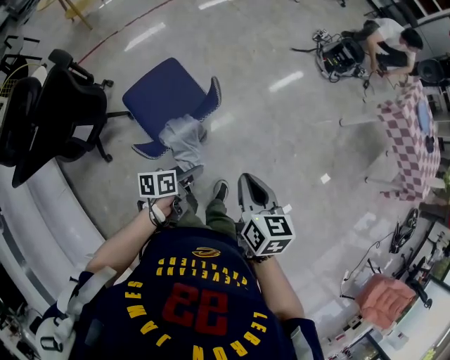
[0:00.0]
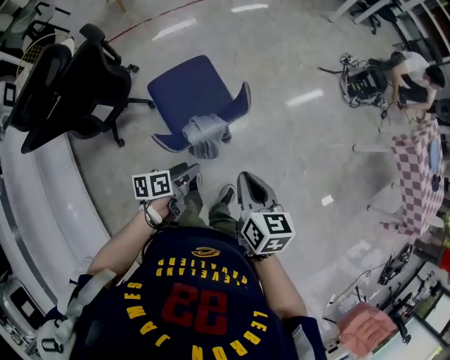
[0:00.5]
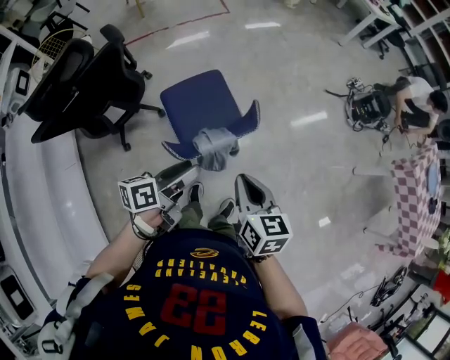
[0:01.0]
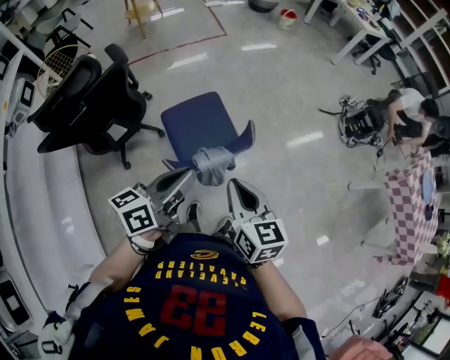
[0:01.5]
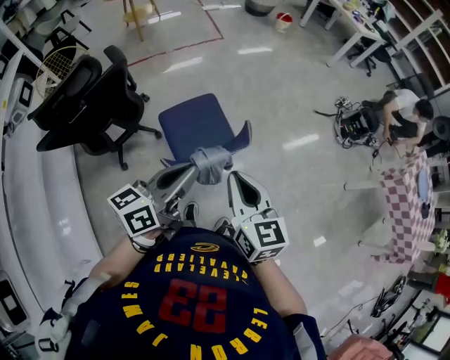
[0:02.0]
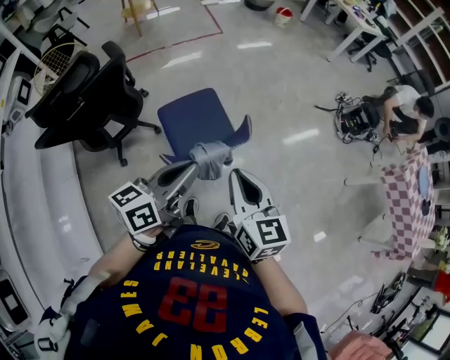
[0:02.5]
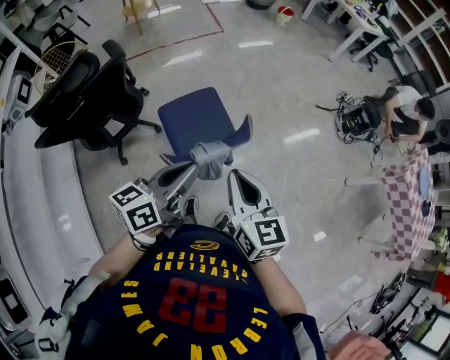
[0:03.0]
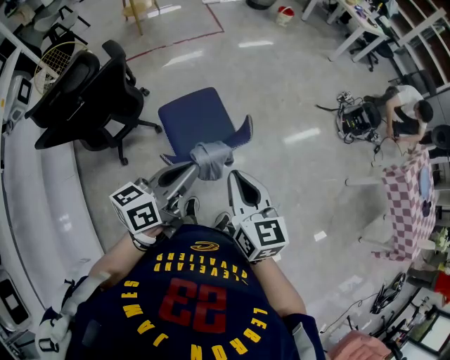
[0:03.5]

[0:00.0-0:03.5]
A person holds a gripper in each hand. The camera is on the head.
0:00.0 to 0:02.0: The right gripper travels to the left and upward by approximately 20 cm, and changes its angle by about 30 degrees. Meanwhile the left gripper shifts some 30 cm upward, points its fingers about 30 degrees further upward, and closes.
0:02.0 to 0:03.5: The grippers make only small movements.

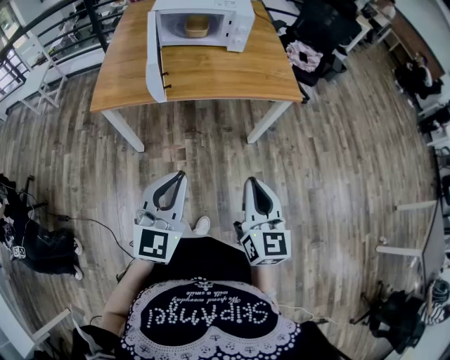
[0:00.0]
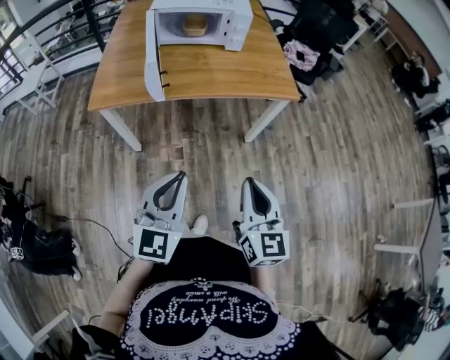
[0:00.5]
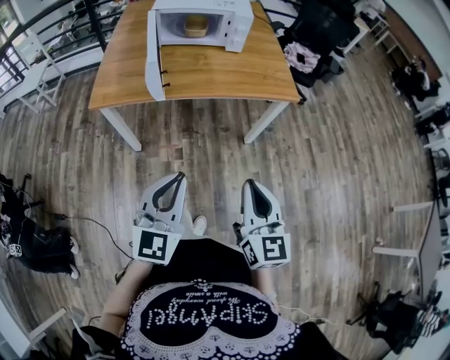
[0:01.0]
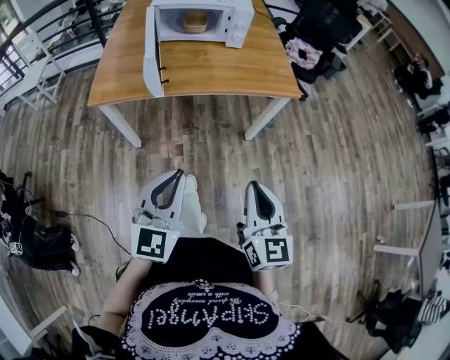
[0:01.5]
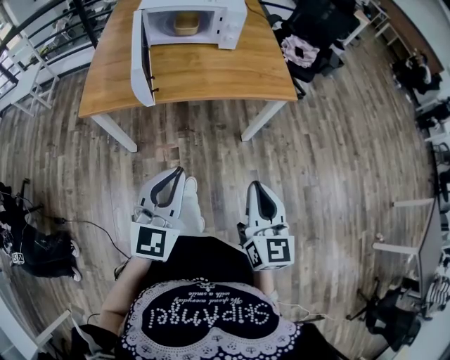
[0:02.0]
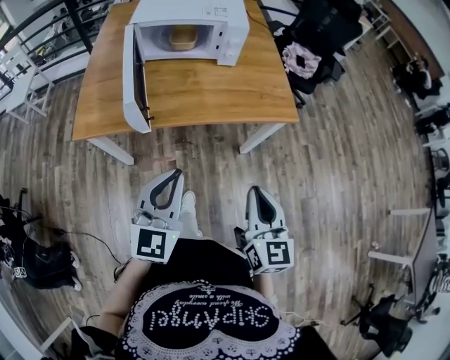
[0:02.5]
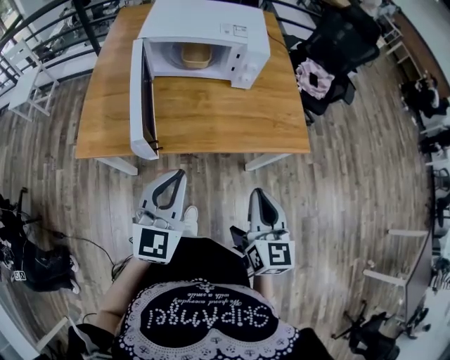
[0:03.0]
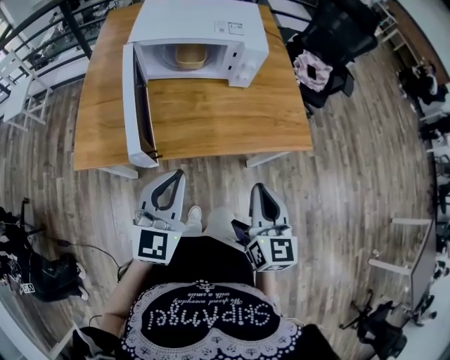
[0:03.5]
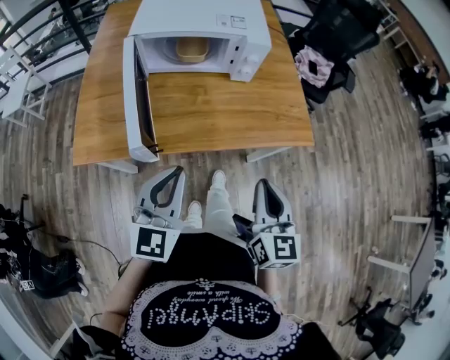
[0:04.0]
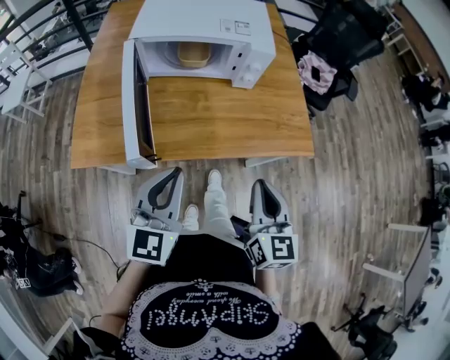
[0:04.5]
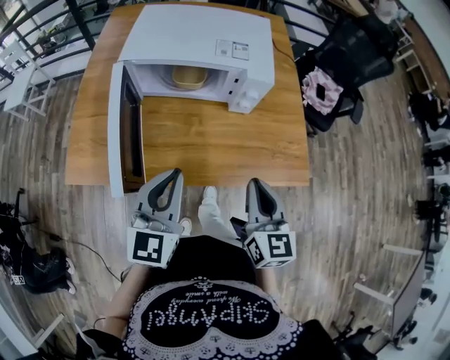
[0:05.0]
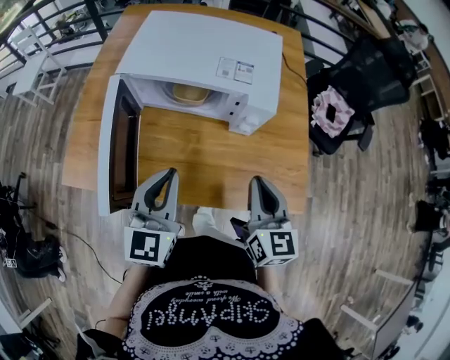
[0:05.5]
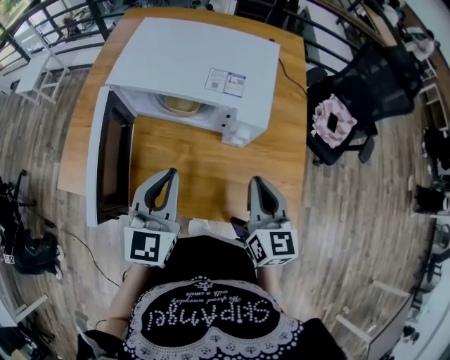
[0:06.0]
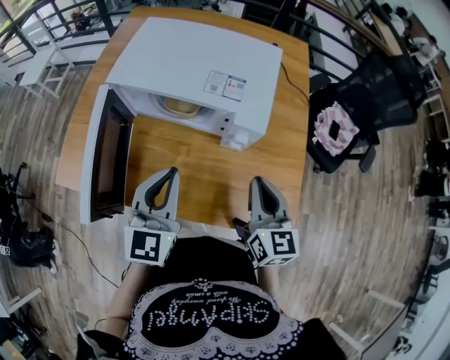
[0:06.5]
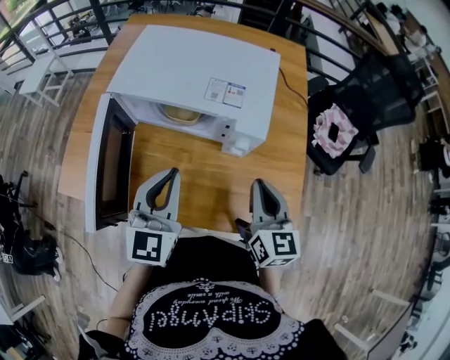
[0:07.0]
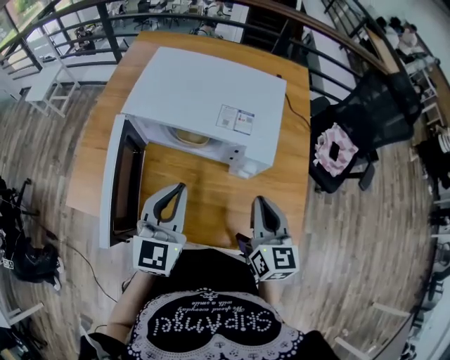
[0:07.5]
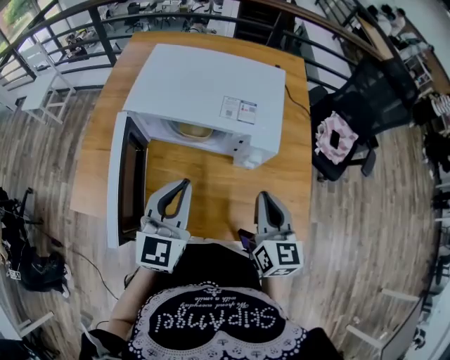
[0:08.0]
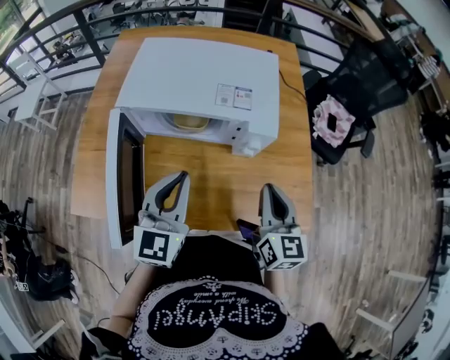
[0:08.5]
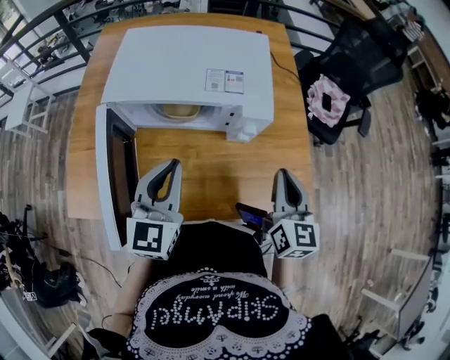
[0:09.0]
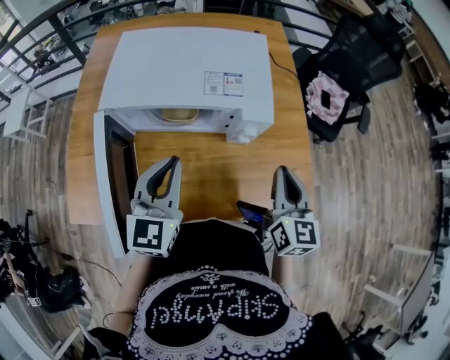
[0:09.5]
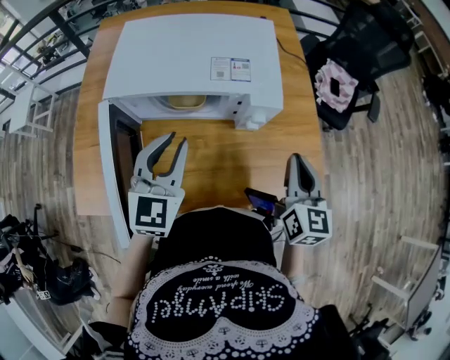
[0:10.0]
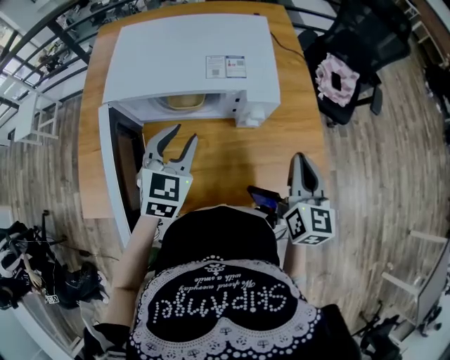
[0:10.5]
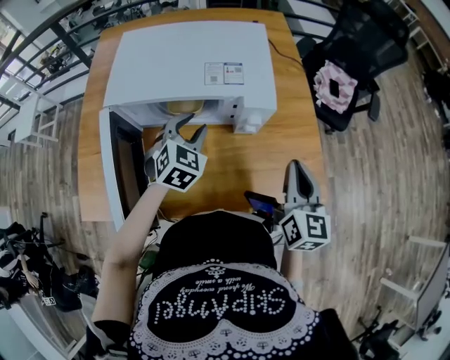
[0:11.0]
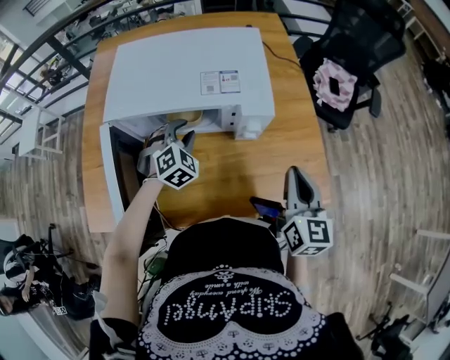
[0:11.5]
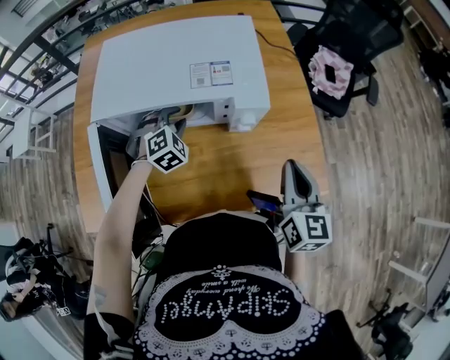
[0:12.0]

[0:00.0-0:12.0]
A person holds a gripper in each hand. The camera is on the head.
0:00.0 to 0:02.0: The left gripper moves approximately 5 cm.
0:02.0 to 0:04.0: Both grippers move forward, roughly 25 cm.
0:04.0 to 0:06.0: Both grippers move forward, about 25 cm.
0:06.0 to 0:08.0: The grippers stay close to where they were, moving slightly.
0:08.0 to 0:10.0: The right gripper goes some 5 cm to the right. The left gripper shifts by approximately 5 cm.
0:10.0 to 0:12.0: The left gripper moves downward and forward, roughly 20 cm, and points its fingers about 40 degrees further downward.

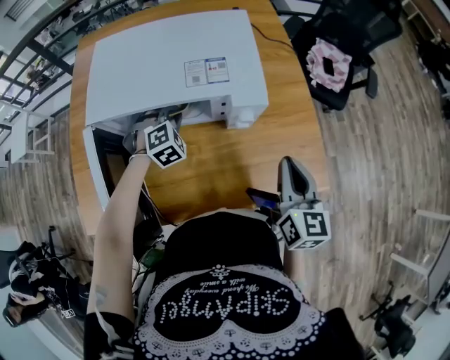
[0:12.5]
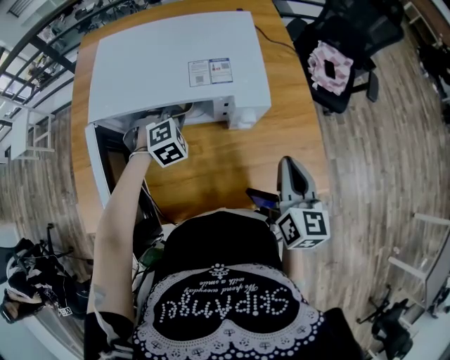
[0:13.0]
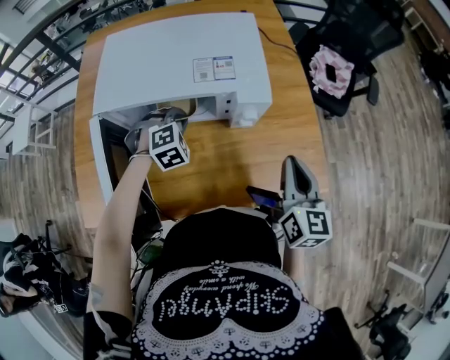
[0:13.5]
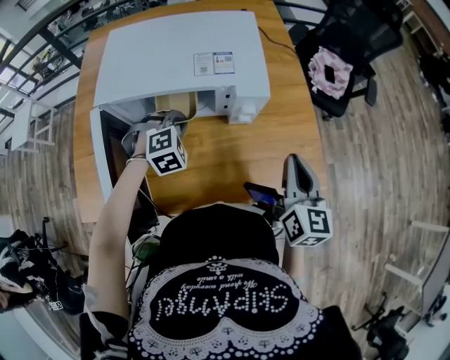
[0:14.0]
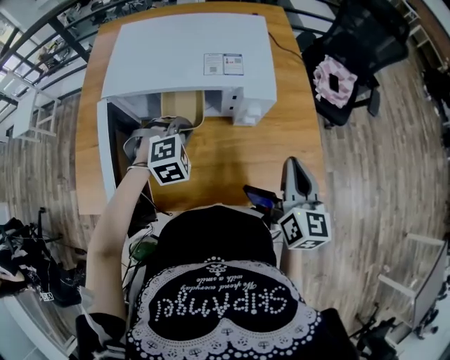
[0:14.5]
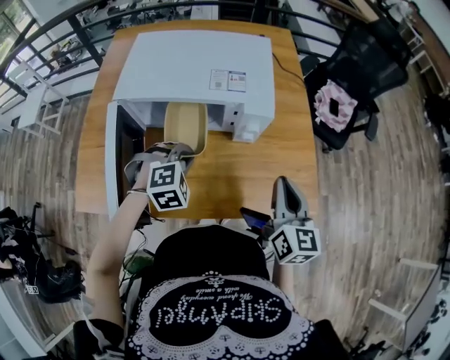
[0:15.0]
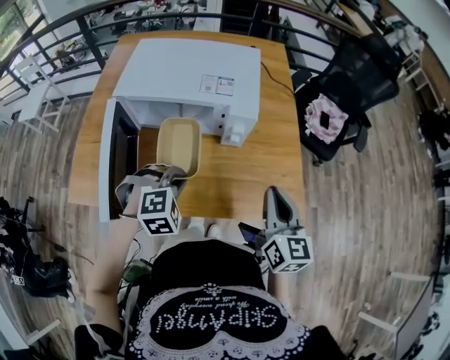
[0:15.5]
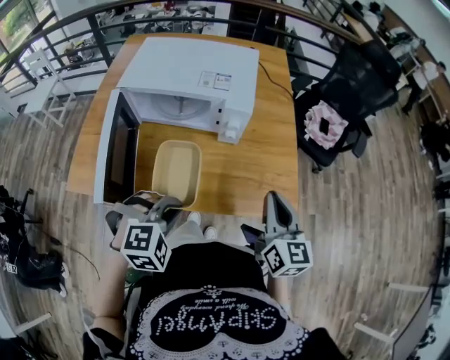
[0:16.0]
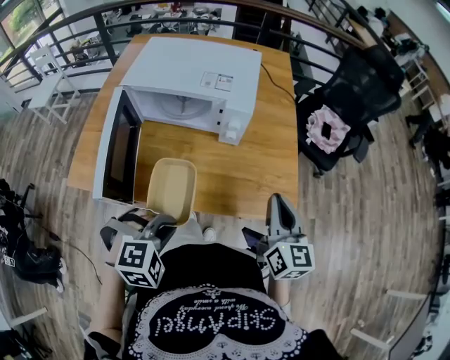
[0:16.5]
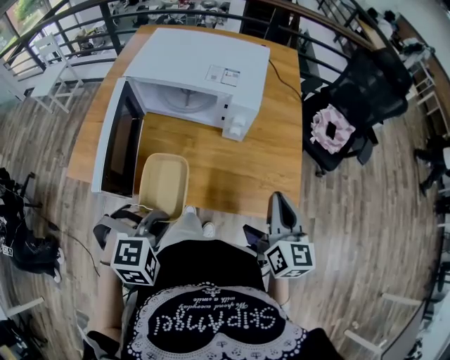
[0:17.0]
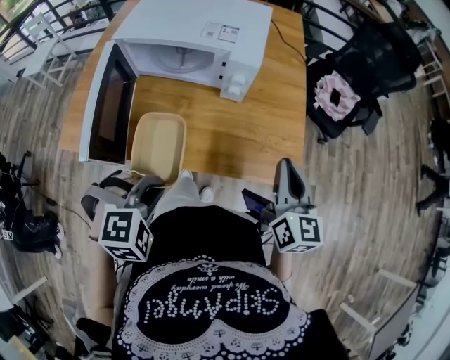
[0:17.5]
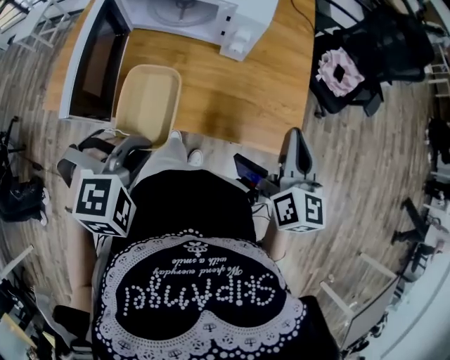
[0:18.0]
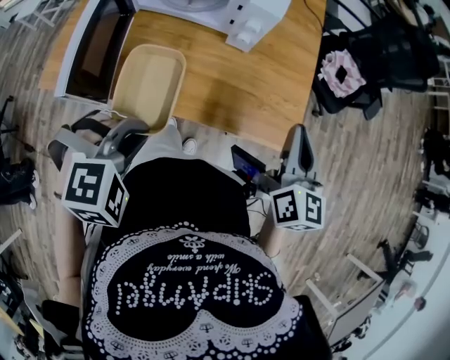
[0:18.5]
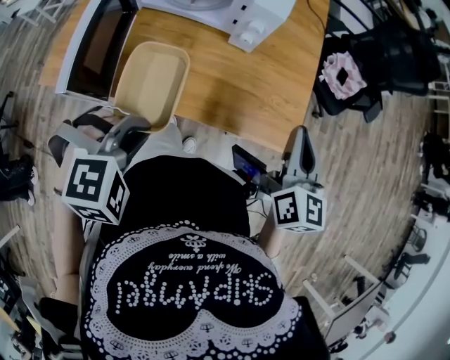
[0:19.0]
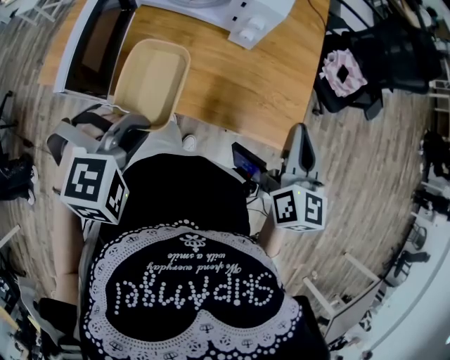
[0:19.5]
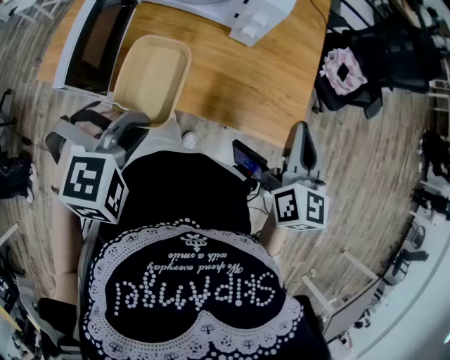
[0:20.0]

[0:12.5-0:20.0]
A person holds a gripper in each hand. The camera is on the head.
0:12.5 to 0:14.5: The left gripper goes some 10 cm backward.
0:14.5 to 0:16.5: The left gripper shifts approximately 30 cm backward. Meanwhile the right gripper moves backward and to the right, some 10 cm.
0:16.5 to 0:20.0: There are only small adjustments of the grippers.

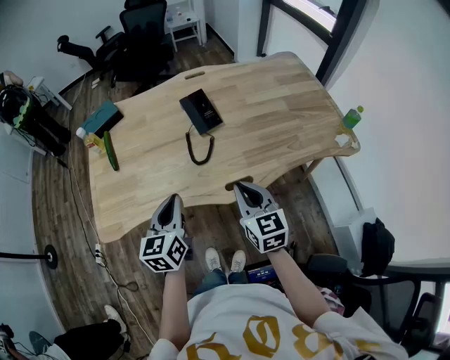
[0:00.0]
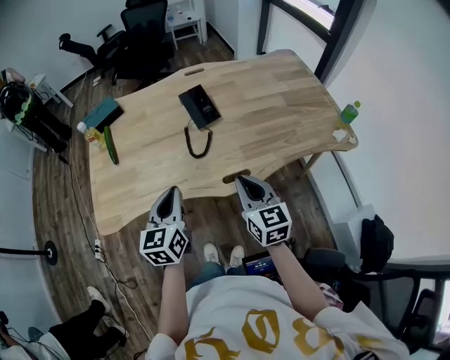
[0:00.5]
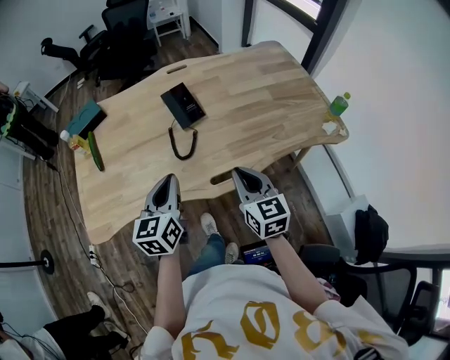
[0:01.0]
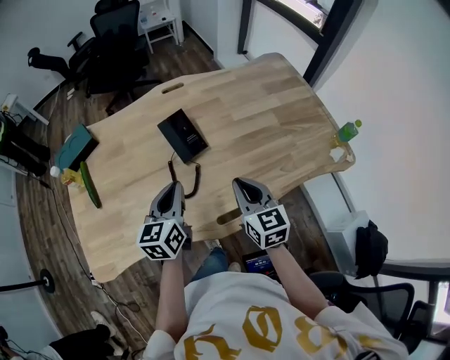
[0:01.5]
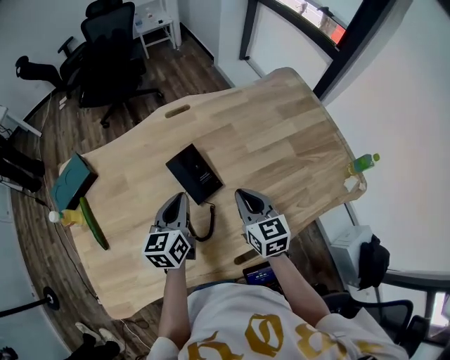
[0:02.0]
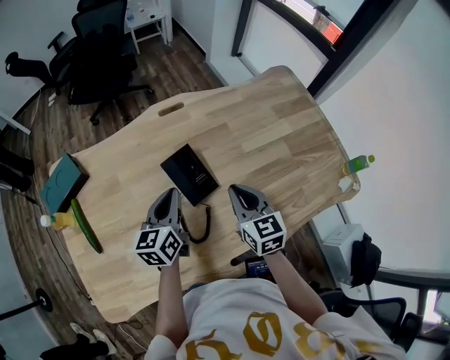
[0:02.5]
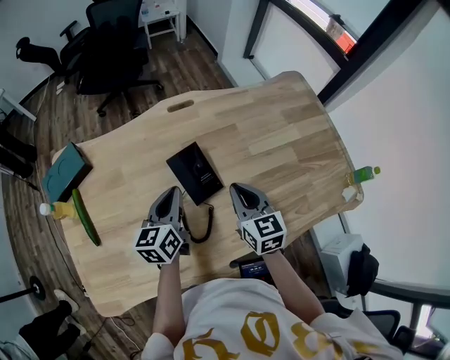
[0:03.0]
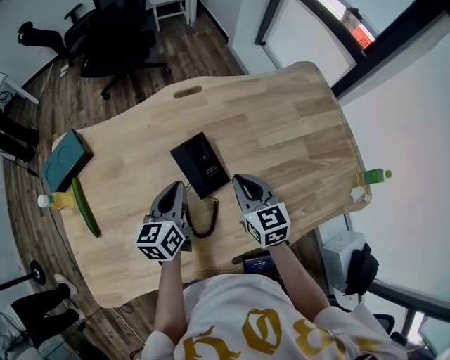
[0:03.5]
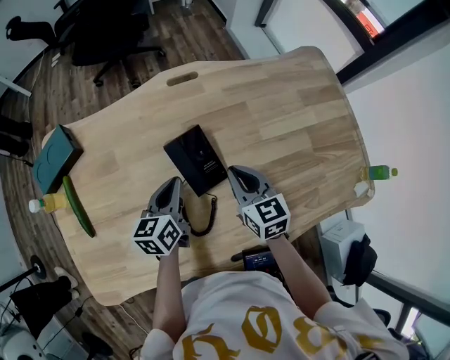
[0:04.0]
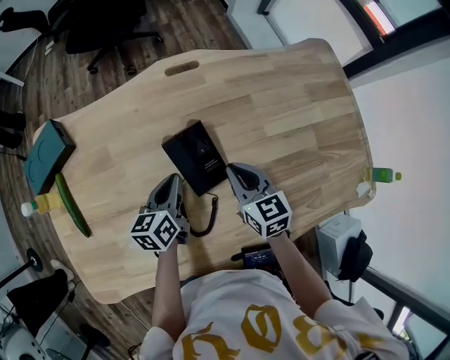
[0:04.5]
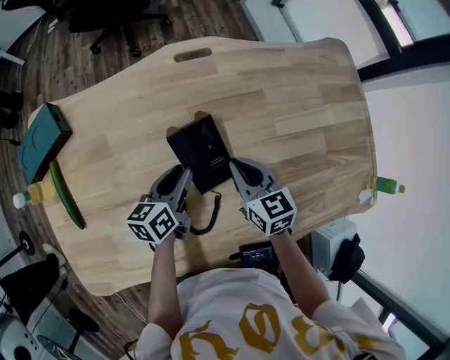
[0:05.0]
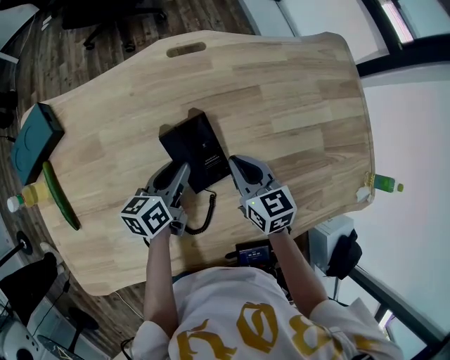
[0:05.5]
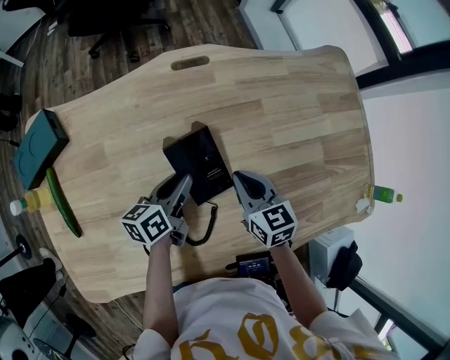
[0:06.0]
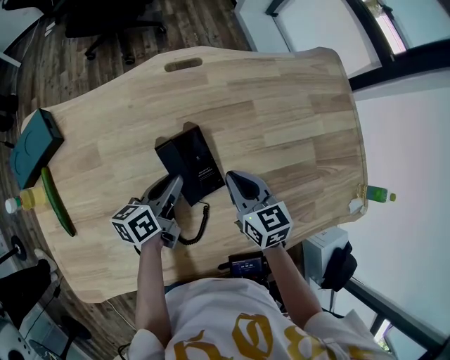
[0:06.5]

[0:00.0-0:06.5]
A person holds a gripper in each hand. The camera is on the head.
0:00.0 to 0:02.0: The grippers both shift forward by approximately 30 cm.
0:02.0 to 0:04.5: The left gripper goes some 10 cm downward; the right gripper is displaced forward and downward by roughly 10 cm.
0:04.5 to 0:06.5: The grippers make only small movements.
